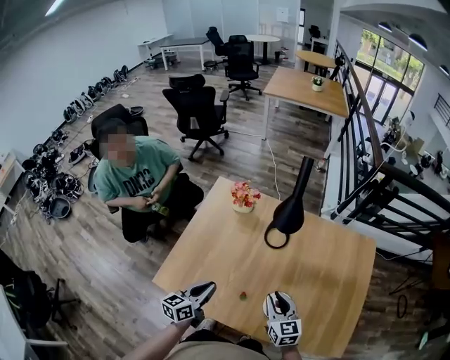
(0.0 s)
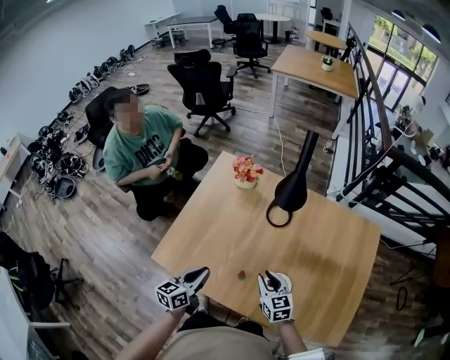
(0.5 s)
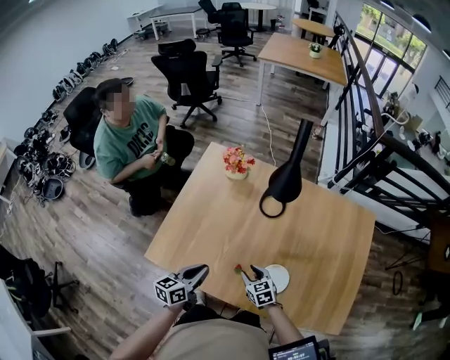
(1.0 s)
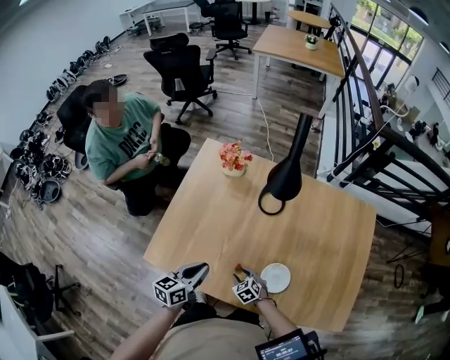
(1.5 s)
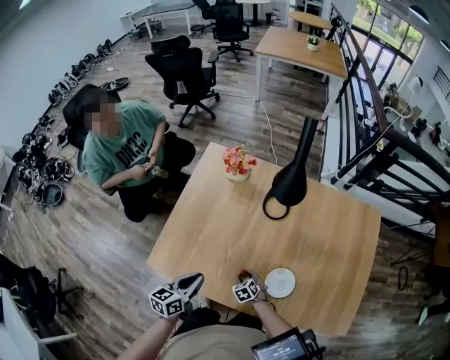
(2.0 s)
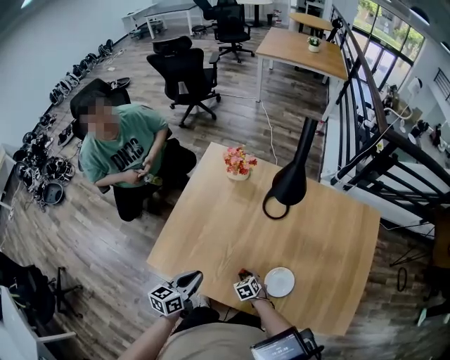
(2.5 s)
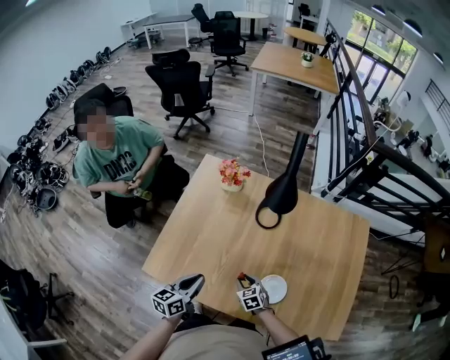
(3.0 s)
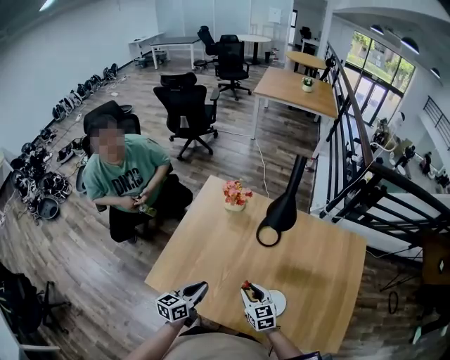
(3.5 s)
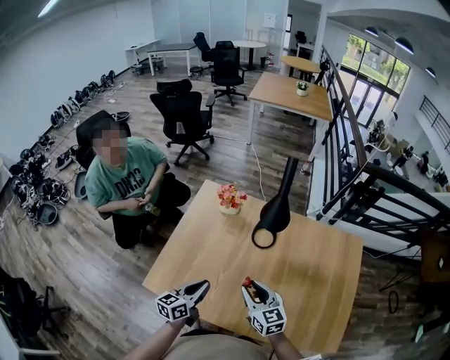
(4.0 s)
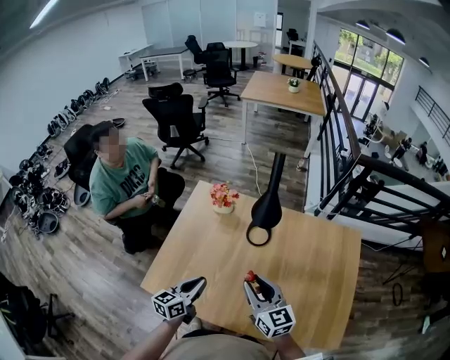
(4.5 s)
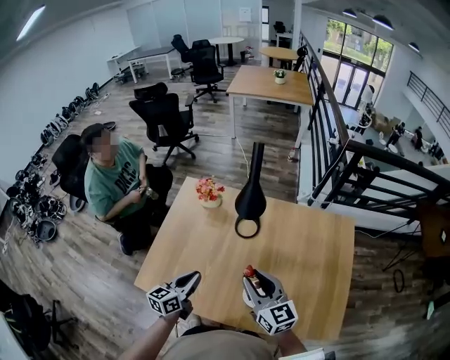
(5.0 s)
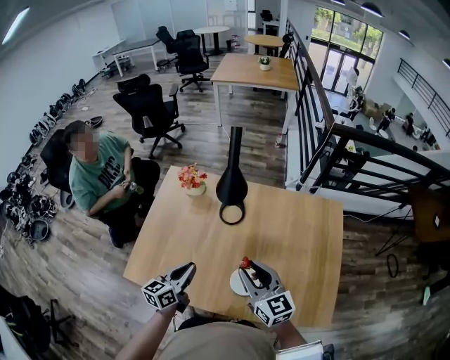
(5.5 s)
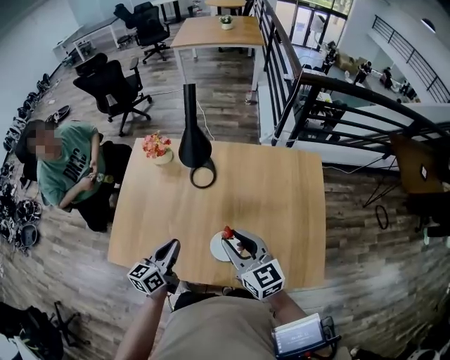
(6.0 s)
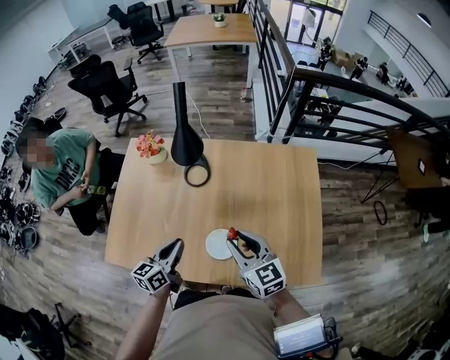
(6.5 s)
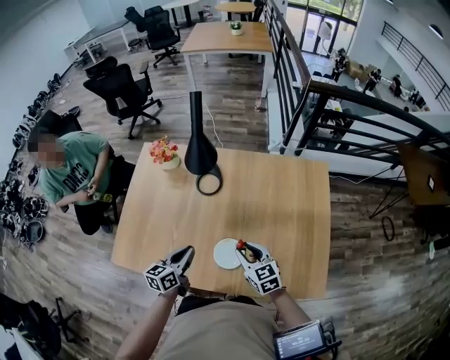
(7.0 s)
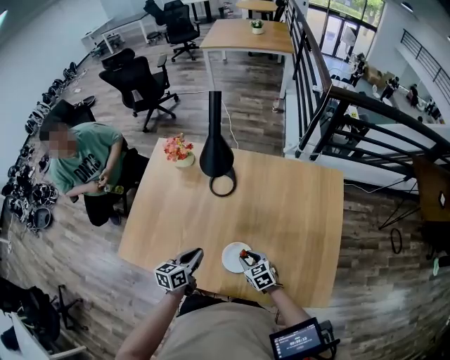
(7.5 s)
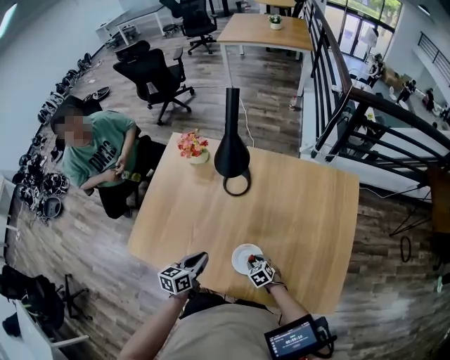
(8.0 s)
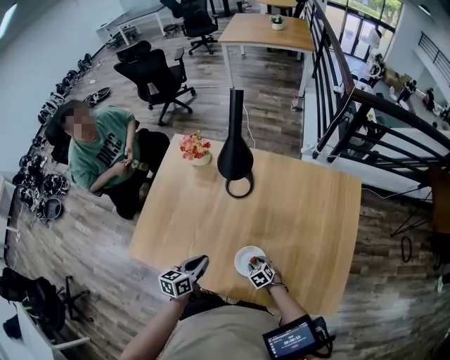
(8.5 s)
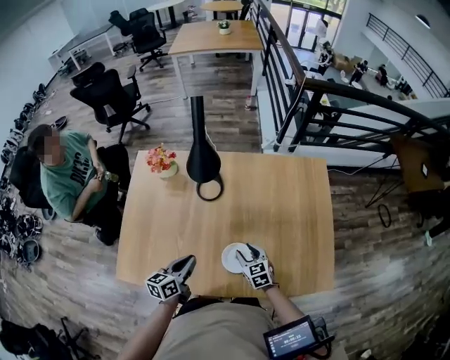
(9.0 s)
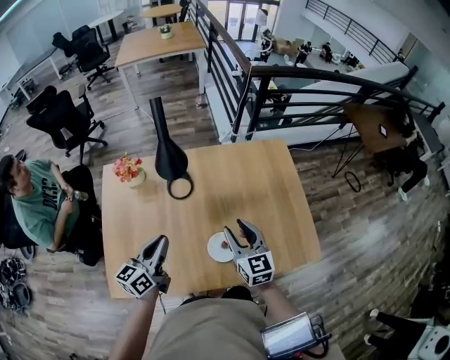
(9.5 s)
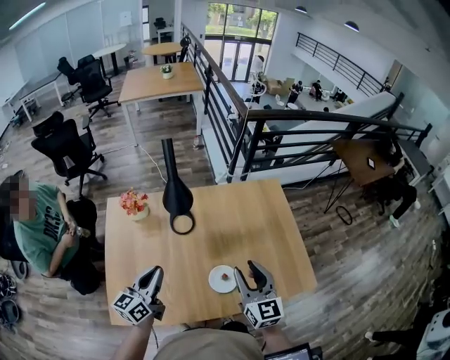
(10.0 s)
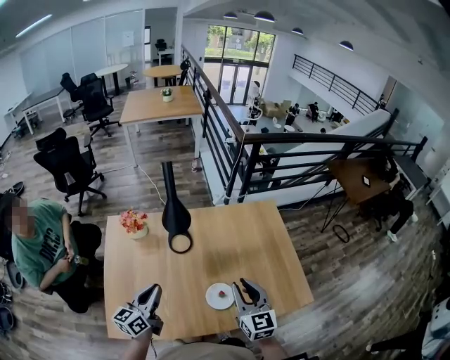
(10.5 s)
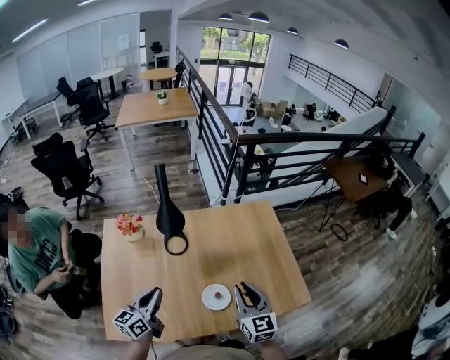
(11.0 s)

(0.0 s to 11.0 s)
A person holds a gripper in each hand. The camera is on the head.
0.0 s - 2.0 s: The right gripper heads downward, covering roughly 35 cm, and angles its fingers downward, by about 40 degrees. Meanwhile the left gripper moves downward, about 5 cm.
2.0 s - 3.5 s: The right gripper travels upward by about 25 cm, and tilts its fingers about 30 degrees upward.
3.5 s - 5.5 s: The right gripper is displaced upward and to the right by some 25 cm, and changes its angle by about 20 degrees. Meanwhile the left gripper goes approximately 15 cm to the right.
5.5 s - 7.5 s: The left gripper heads downward and to the right, covering roughly 15 cm. The right gripper goes some 30 cm downward, and tips its fingers downward by roughly 40 degrees.
7.5 s - 9.0 s: The left gripper changes place by roughly 5 cm; the right gripper reaches about 10 cm downward, then returns.
9.0 s - 11.0 s: The right gripper goes roughly 30 cm upward, rotates about 40 degrees, and closes its fingers. The left gripper moves upward, some 15 cm, and turns by approximately 20 degrees.

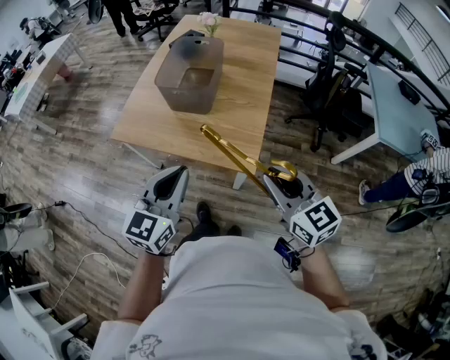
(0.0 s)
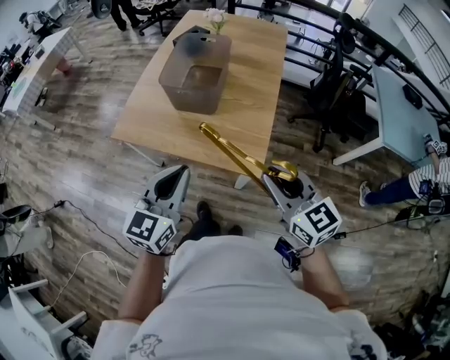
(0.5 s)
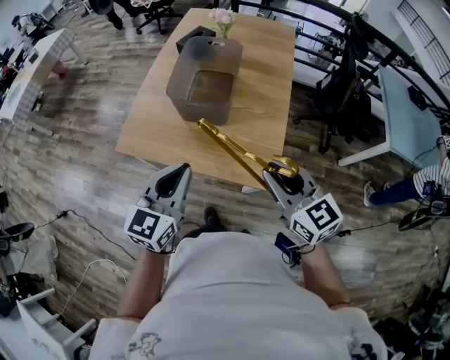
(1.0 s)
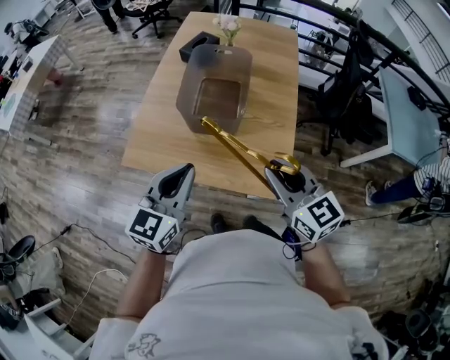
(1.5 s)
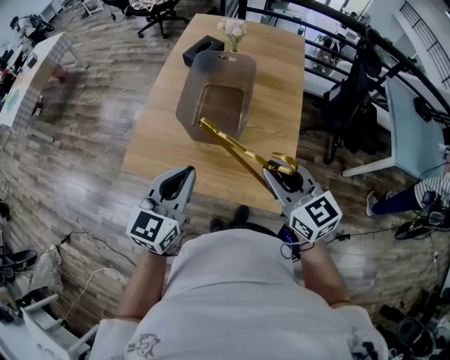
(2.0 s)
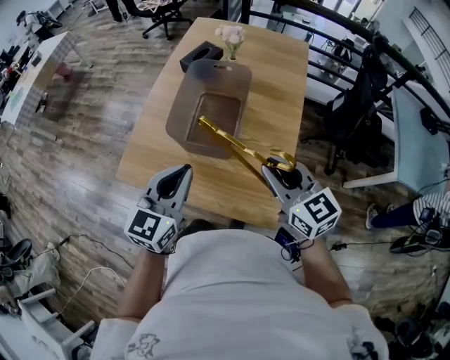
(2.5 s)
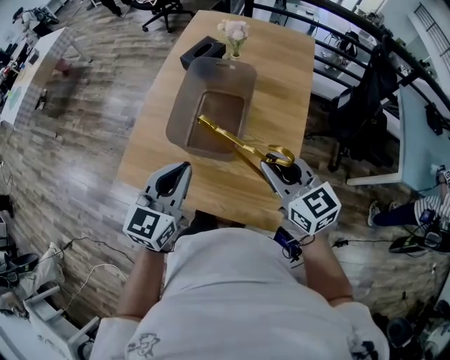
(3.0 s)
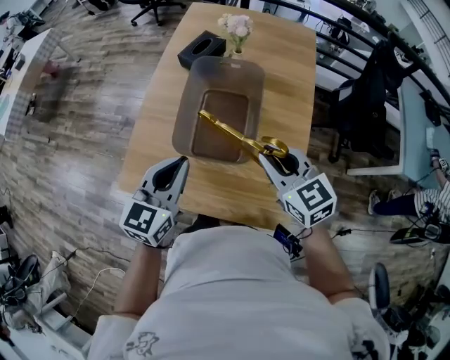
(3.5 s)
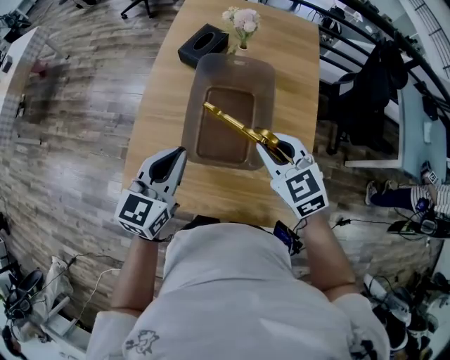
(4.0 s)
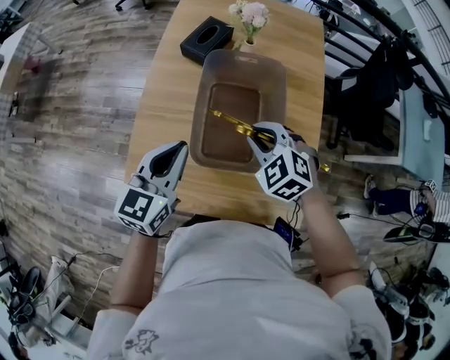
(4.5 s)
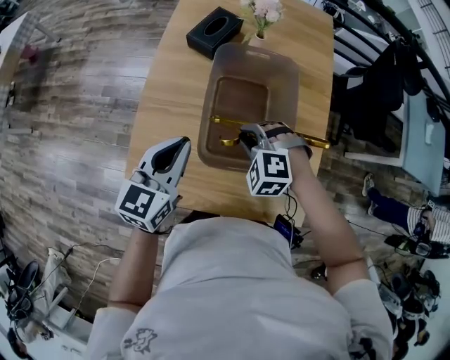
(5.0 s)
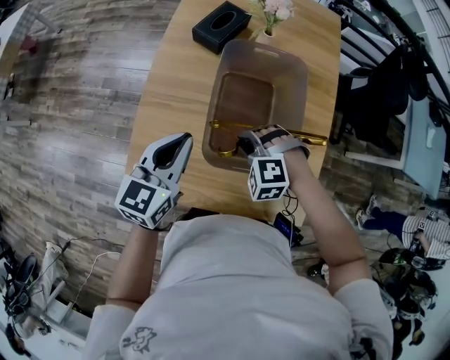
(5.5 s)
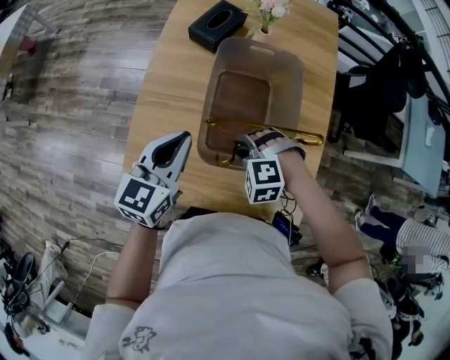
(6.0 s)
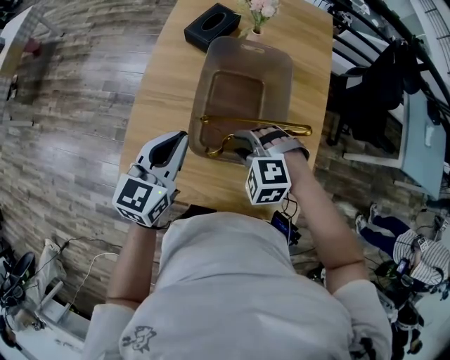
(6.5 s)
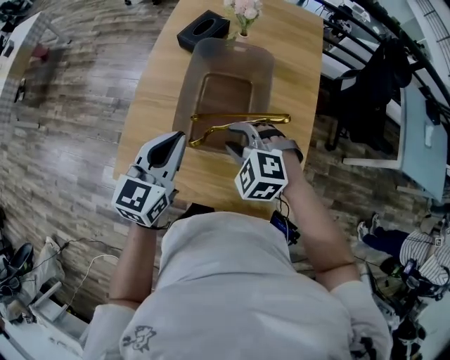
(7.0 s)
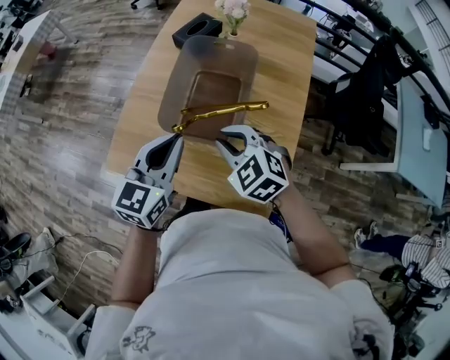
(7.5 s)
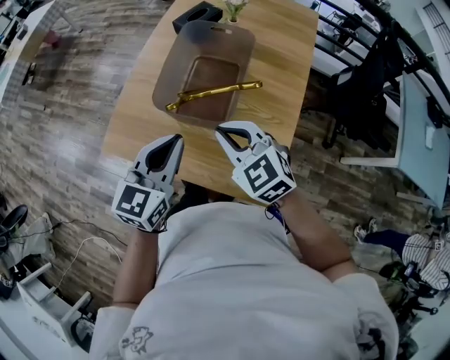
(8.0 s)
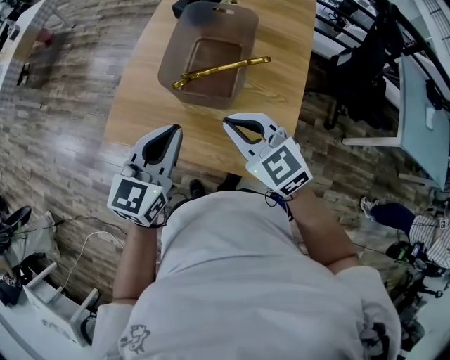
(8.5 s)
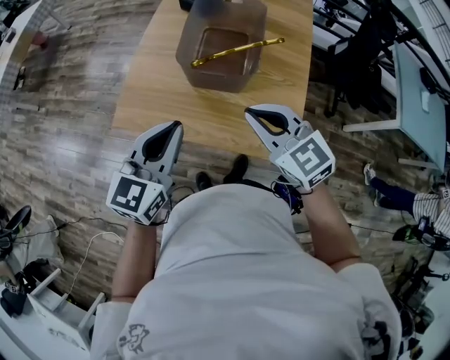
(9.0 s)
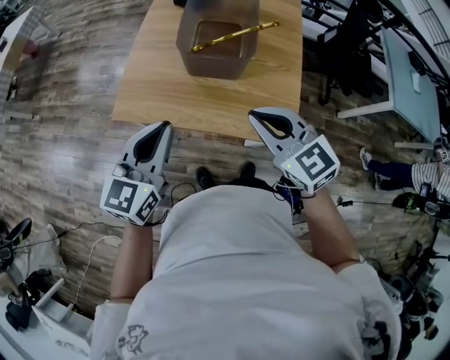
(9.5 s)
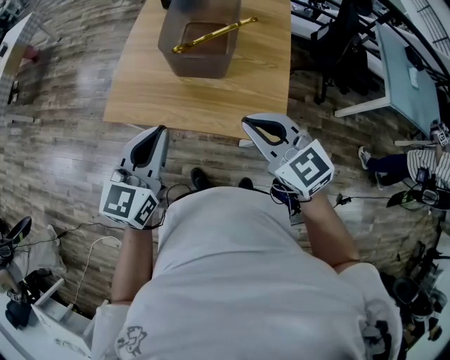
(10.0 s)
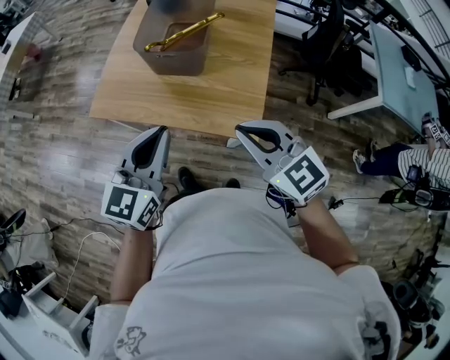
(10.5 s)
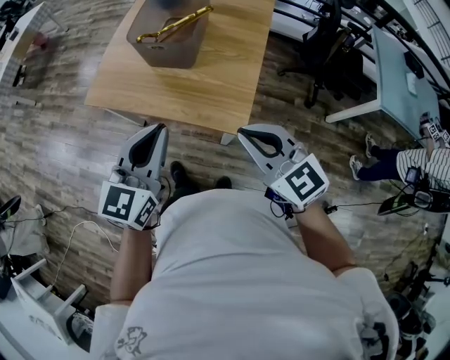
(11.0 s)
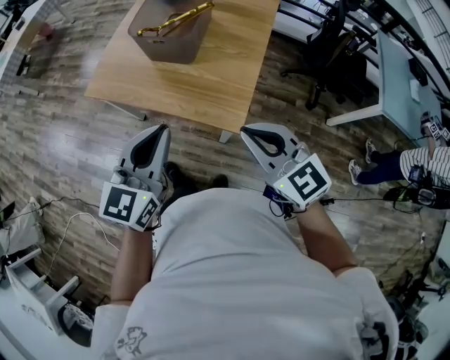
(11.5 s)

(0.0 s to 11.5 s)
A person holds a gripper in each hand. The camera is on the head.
0.0 s - 2.0 s: The two grippers go approximately 25 cm forward and to the left.
2.0 s - 4.0 s: Both grippers move forward, some 20 cm. The right gripper changes its angle by about 20 degrees.
4.0 s - 6.0 s: The left gripper is displaced forward and downward by roughly 5 cm, while the right gripper shifts about 20 cm downward and to the left, and rolls counterclockwise, seen from behind, by about 50 degrees.
6.0 s - 7.5 s: The right gripper is displaced upward, to the right and backward by some 15 cm, and changes its angle by roughly 40 degrees. The left gripper is displaced backward, to the right and upward by roughly 15 cm.
7.5 s - 9.5 s: The right gripper shifts some 20 cm backward, and turns by about 30 degrees, while the left gripper moves backward and to the left, approximately 20 cm.
9.5 s - 11.5 s: Both grippers move to the right and backward, approximately 25 cm.

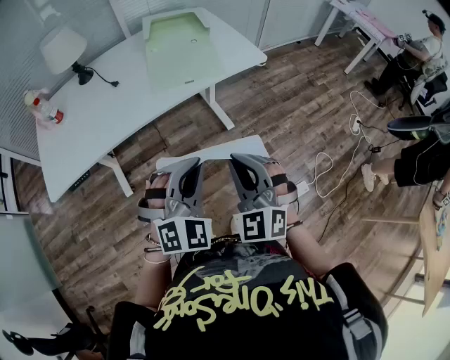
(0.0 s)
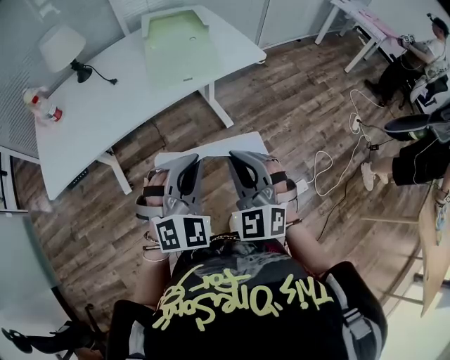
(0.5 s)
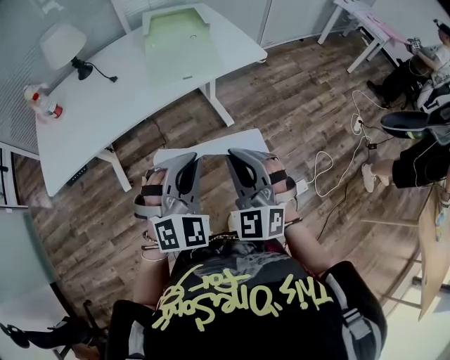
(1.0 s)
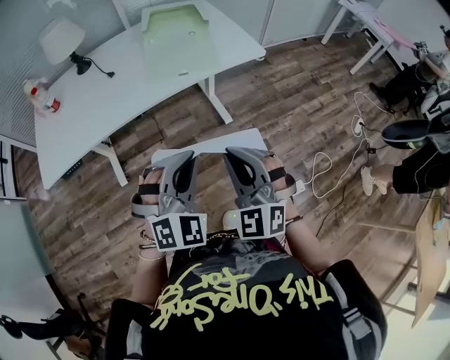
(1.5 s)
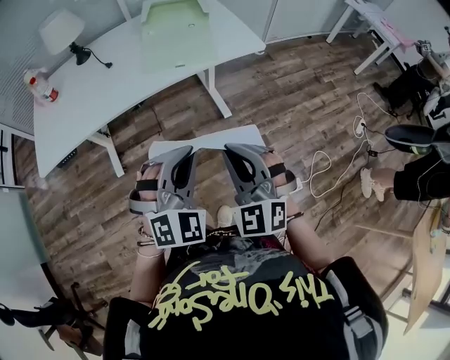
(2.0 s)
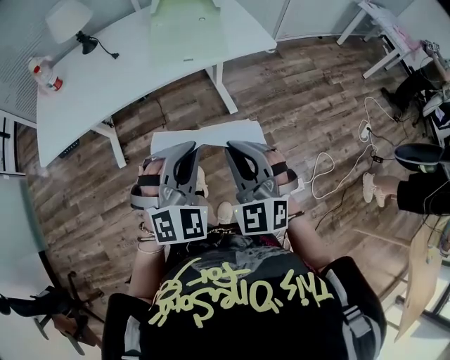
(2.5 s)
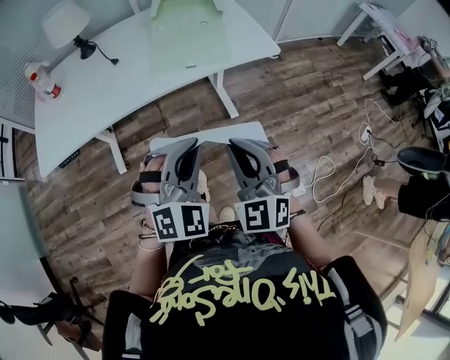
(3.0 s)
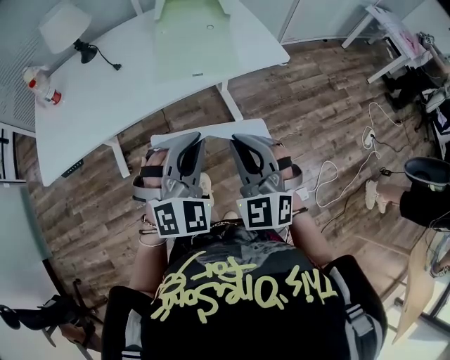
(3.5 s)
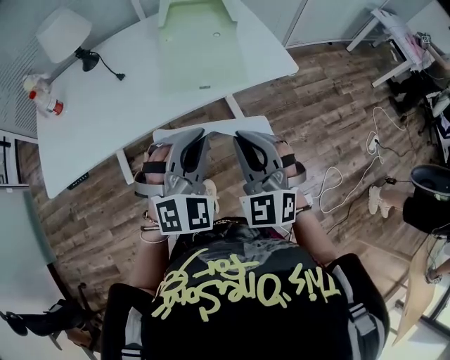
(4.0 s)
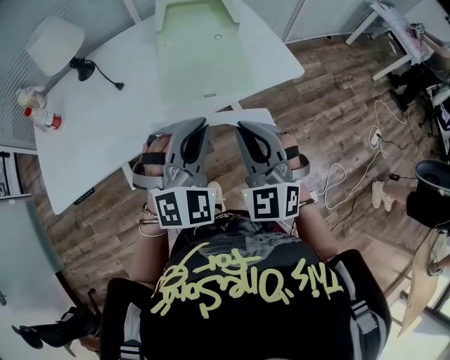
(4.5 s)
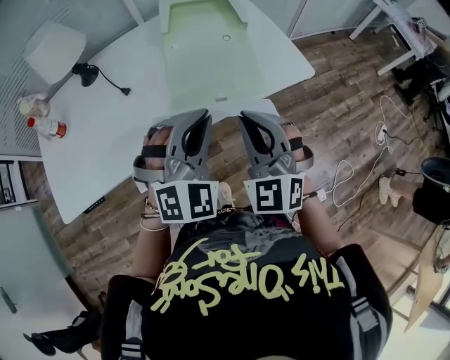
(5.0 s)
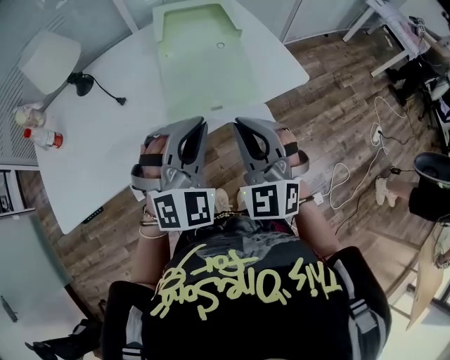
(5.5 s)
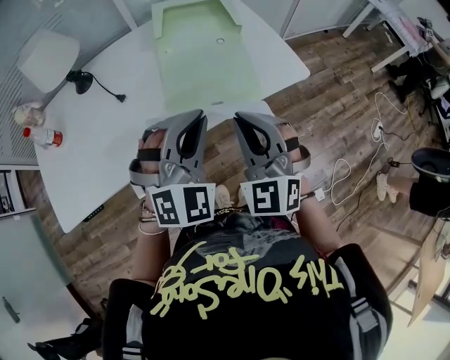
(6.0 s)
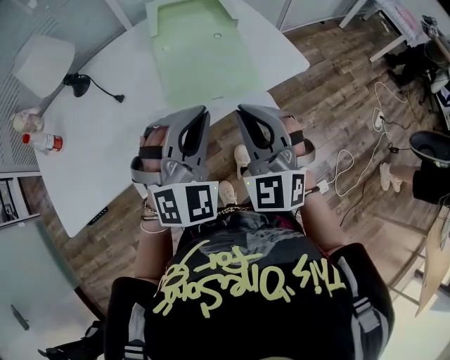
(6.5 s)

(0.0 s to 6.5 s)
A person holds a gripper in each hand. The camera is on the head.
0.0 s - 2.0 s: Both grippers move to the right, roughly 5 cm.
2.0 s - 4.5 s: The grippers both shift forward by roughly 20 cm.
4.5 s - 6.5 s: The right gripper ends up roughly 5 cm from where it was.
